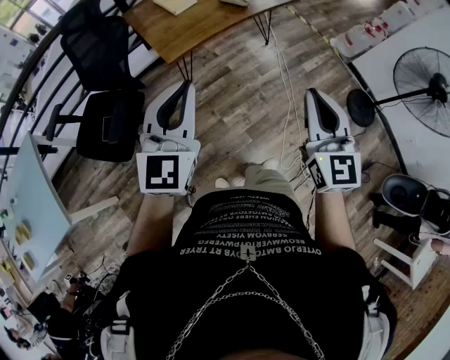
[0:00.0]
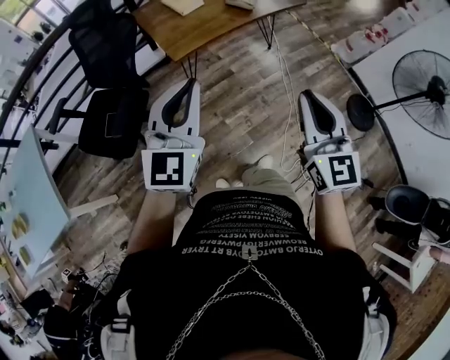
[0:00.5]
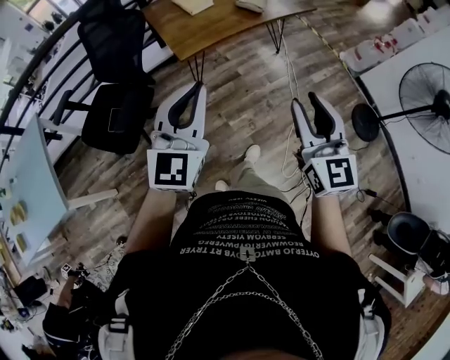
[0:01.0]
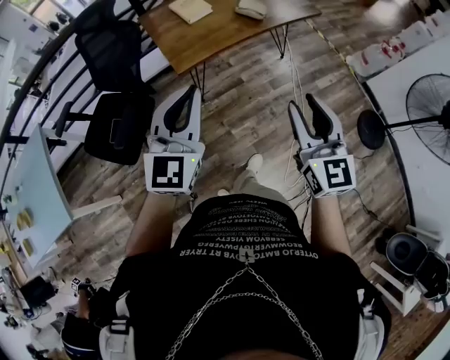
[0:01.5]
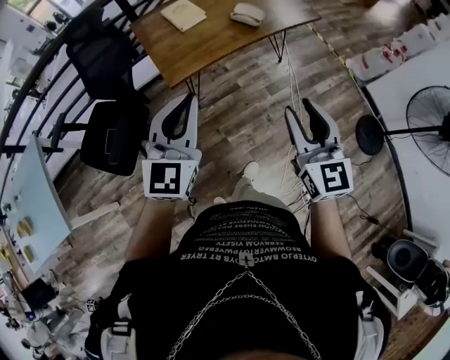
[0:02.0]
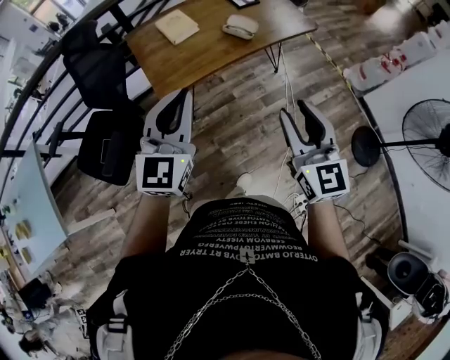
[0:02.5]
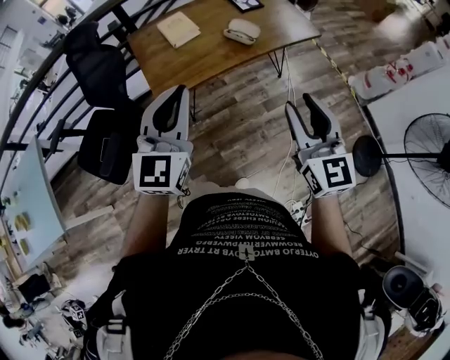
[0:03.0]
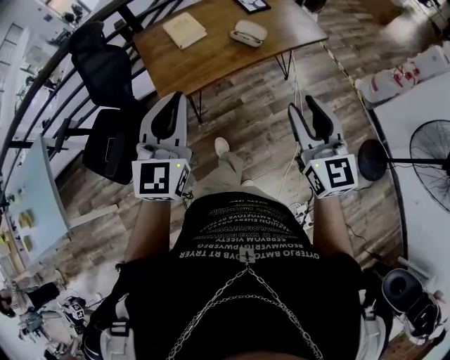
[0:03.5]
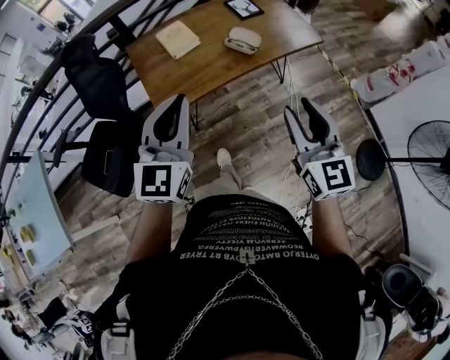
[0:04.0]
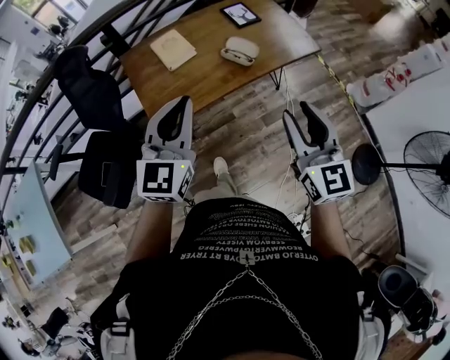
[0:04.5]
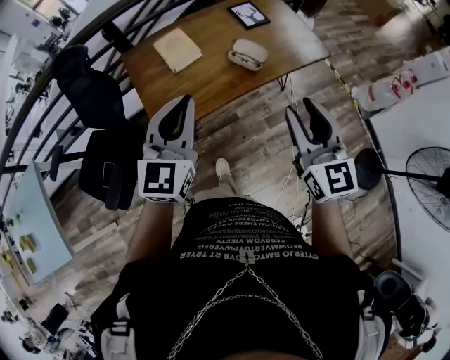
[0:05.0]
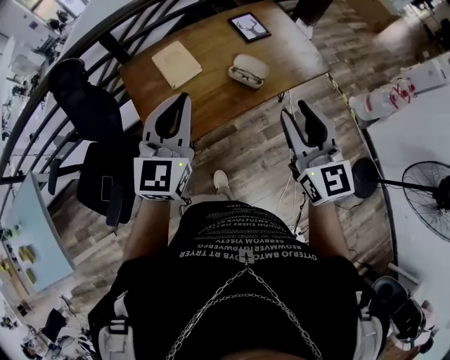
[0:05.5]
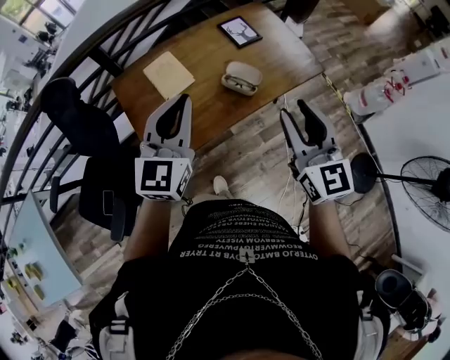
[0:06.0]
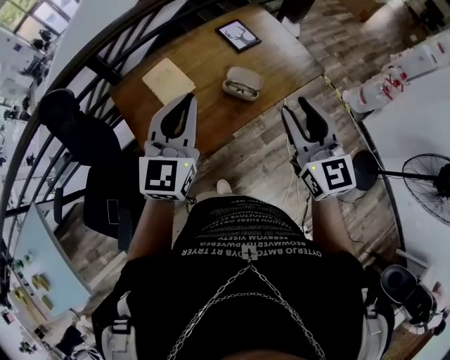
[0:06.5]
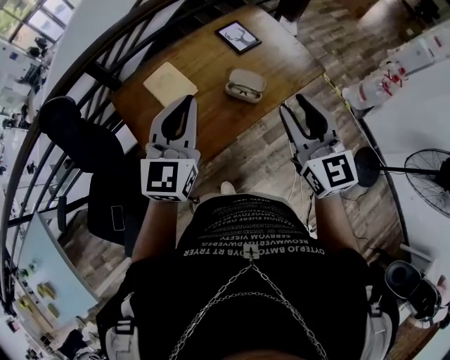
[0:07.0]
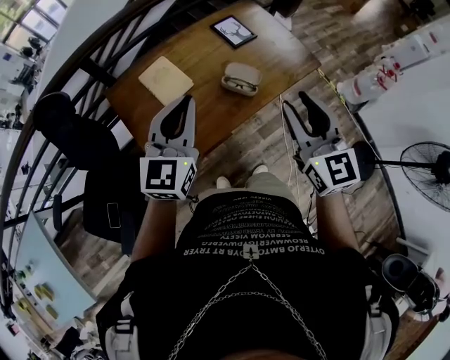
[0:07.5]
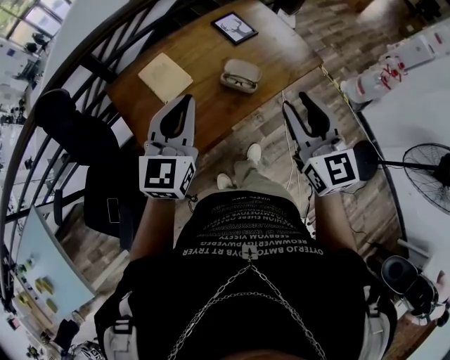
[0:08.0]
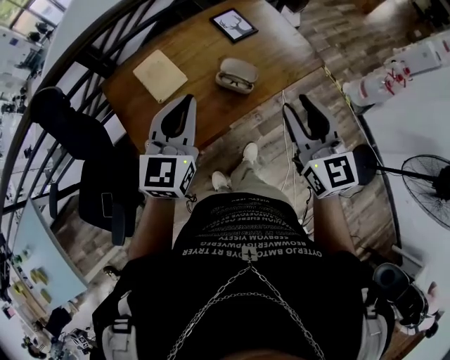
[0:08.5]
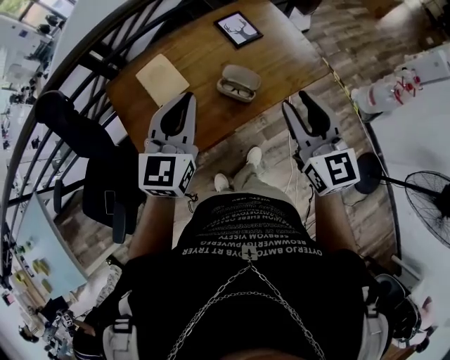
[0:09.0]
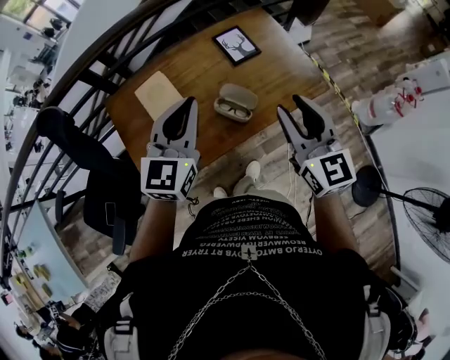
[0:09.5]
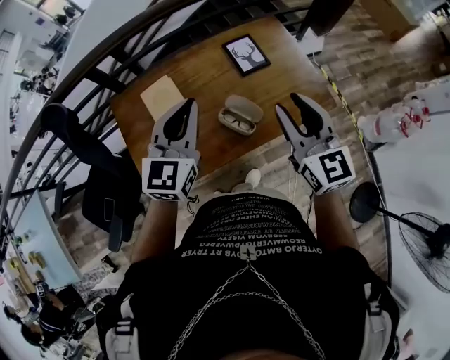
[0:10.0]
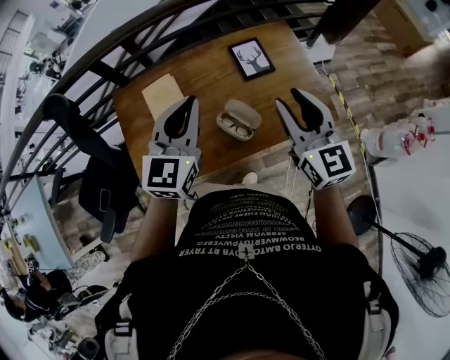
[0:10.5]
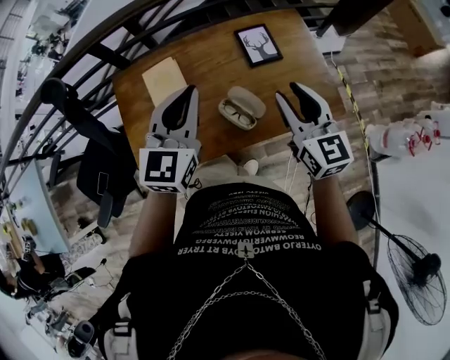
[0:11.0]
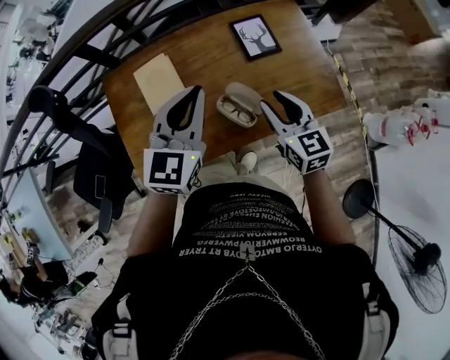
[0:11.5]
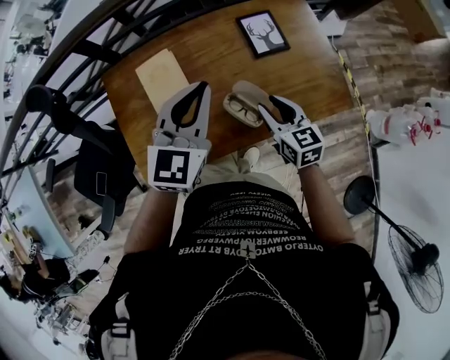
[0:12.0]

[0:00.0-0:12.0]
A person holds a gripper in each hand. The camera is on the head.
0:00.0 to 0:02.0: The two grippers go approximately 10 cm forward. The right gripper opens its fingers.
0:02.0 to 0:04.0: The two grippers go roughly 15 cm forward and to the right.
0:04.0 to 0:06.0: Both grippers travel together forward, about 25 cm.
0:06.0 to 0:08.0: The grippers move only a little.
0:08.0 to 0:10.0: The right gripper is displaced forward by approximately 20 cm. Meanwhile the left gripper travels forward and to the right by some 15 cm.
0:10.0 to 0:12.0: The right gripper is displaced downward by roughly 20 cm, and rotates approximately 30 degrees, while the left gripper travels downward and forward by approximately 10 cm.

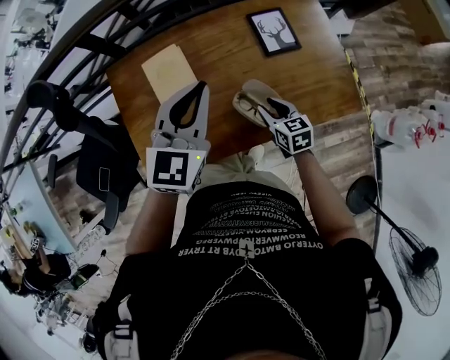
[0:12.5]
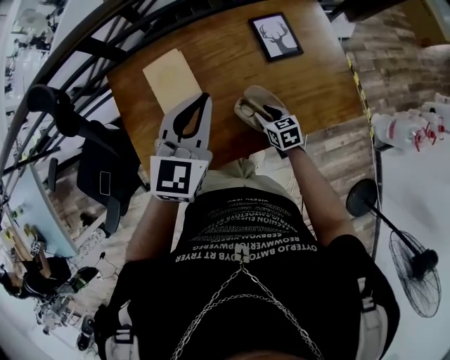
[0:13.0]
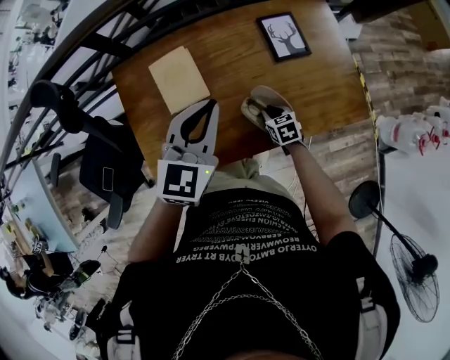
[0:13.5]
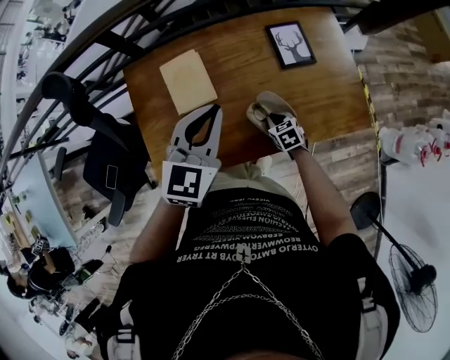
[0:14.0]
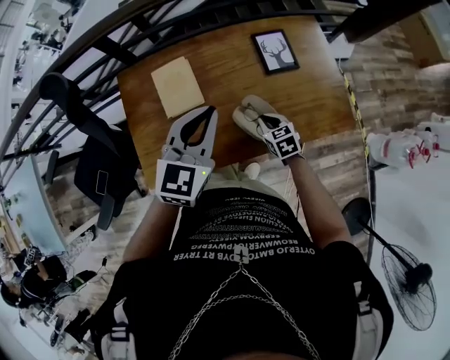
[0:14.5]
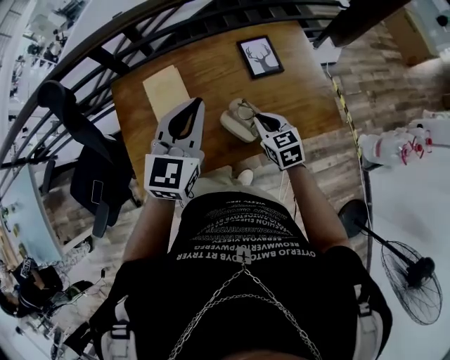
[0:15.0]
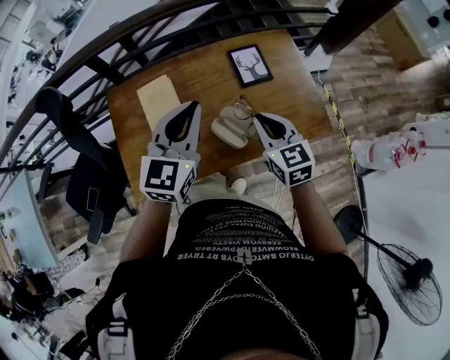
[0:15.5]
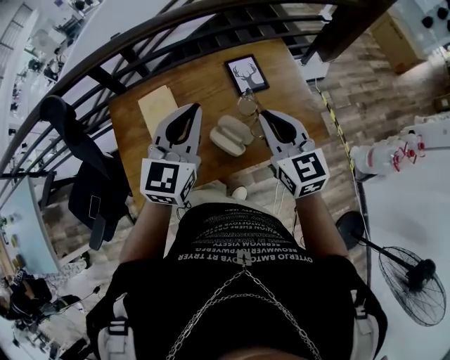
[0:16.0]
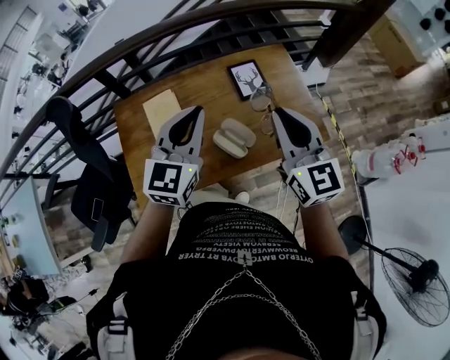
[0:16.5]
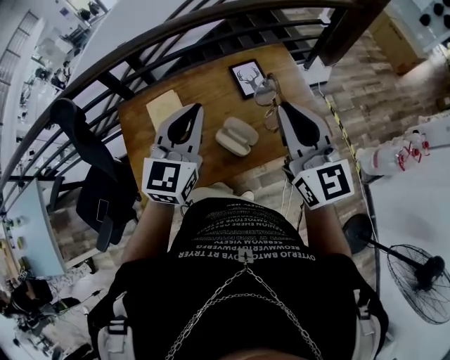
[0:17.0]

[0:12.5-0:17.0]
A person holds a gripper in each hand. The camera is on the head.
0:12.5 to 0:14.5: The right gripper reaches some 10 cm downward, then returns, and closes up.
0:14.5 to 0:17.0: The right gripper heads upward, covering roughly 40 cm, and tilts its fingers some 50 degrees upward, while the left gripper moves upward, some 10 cm.

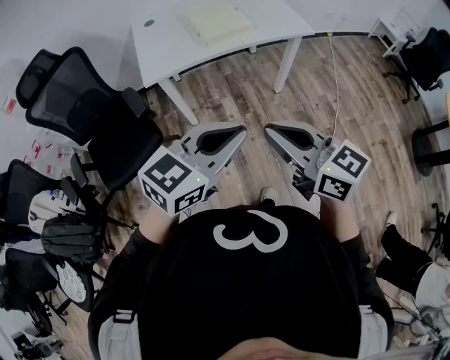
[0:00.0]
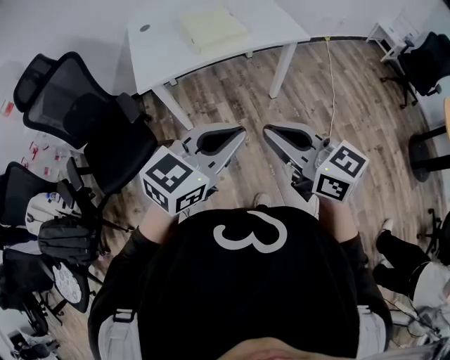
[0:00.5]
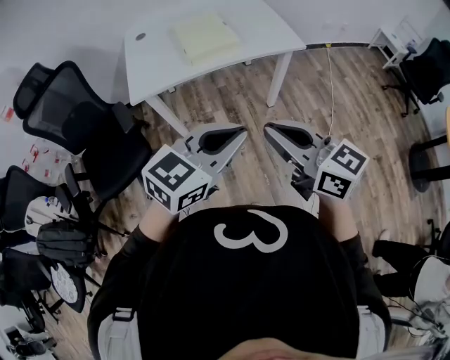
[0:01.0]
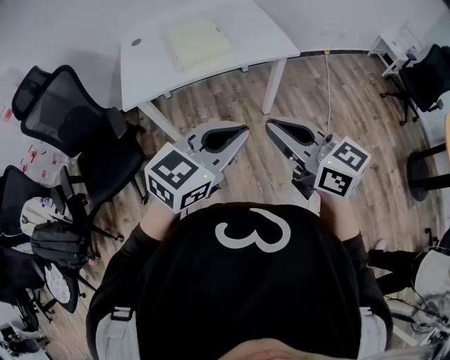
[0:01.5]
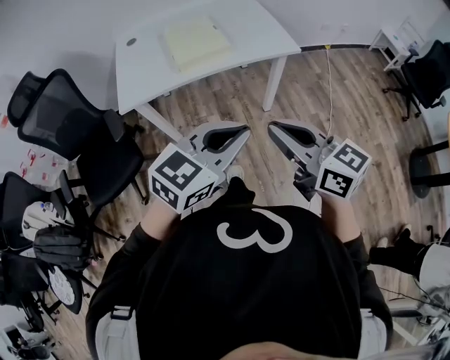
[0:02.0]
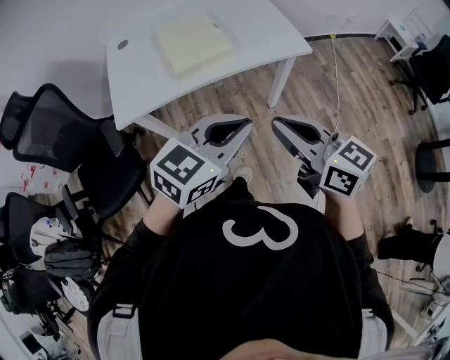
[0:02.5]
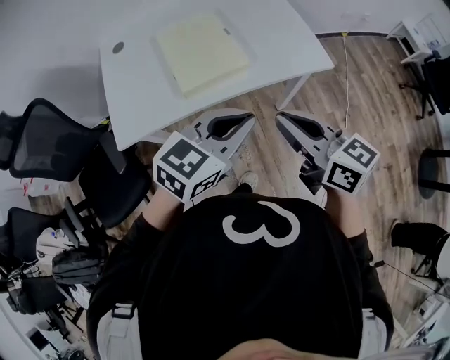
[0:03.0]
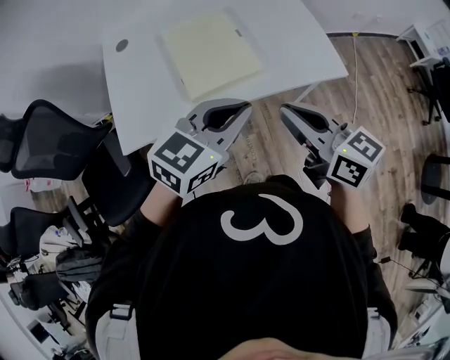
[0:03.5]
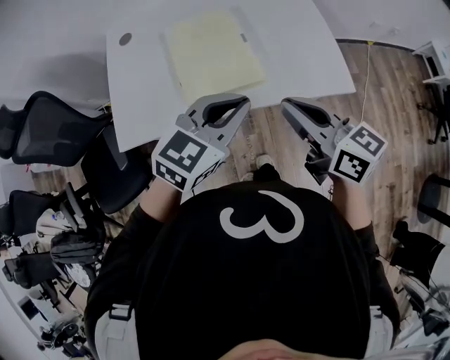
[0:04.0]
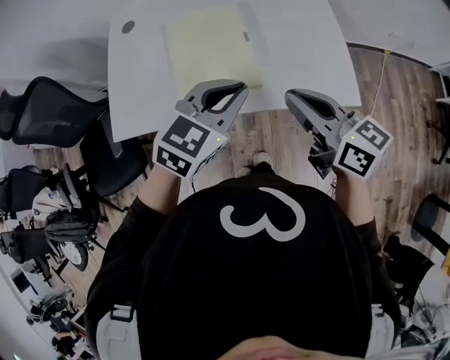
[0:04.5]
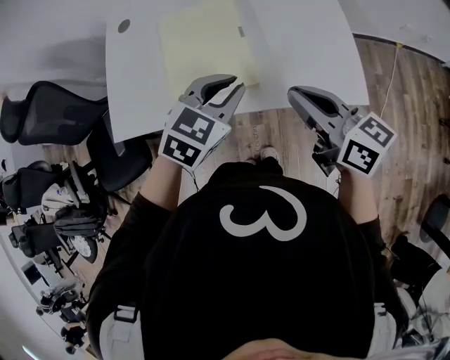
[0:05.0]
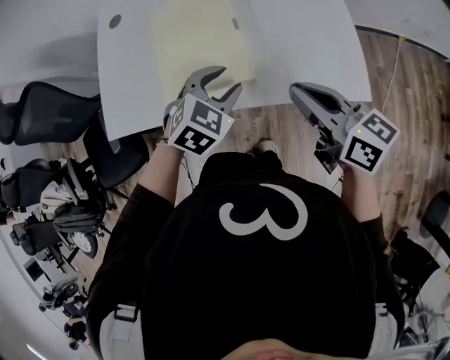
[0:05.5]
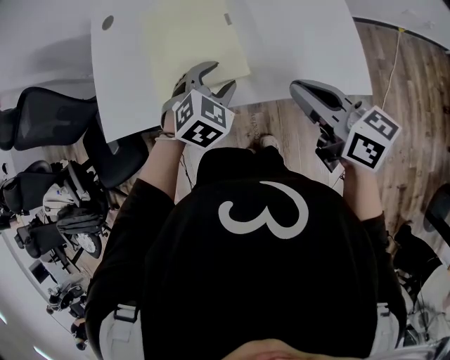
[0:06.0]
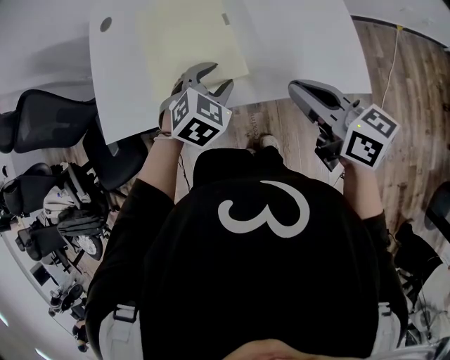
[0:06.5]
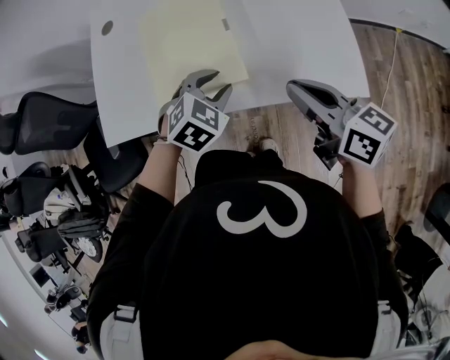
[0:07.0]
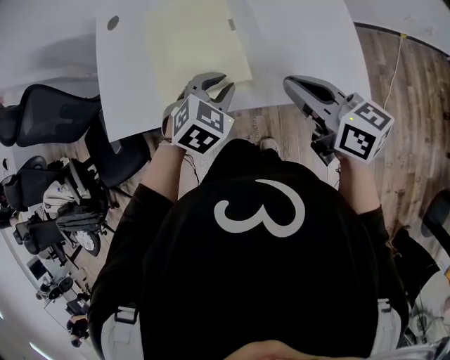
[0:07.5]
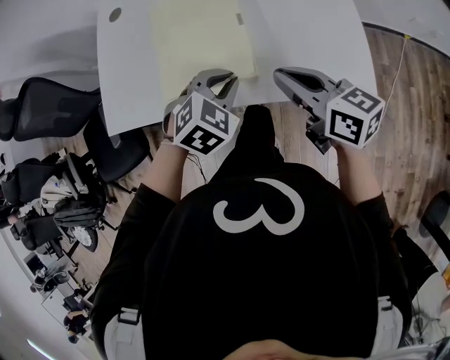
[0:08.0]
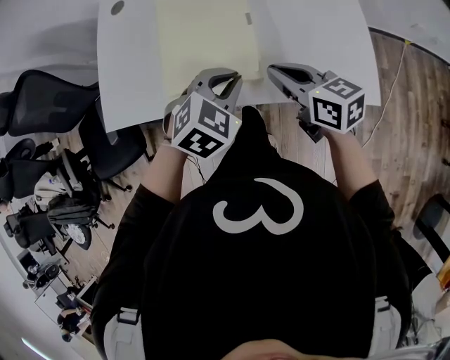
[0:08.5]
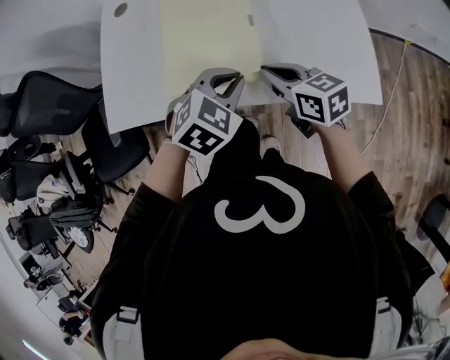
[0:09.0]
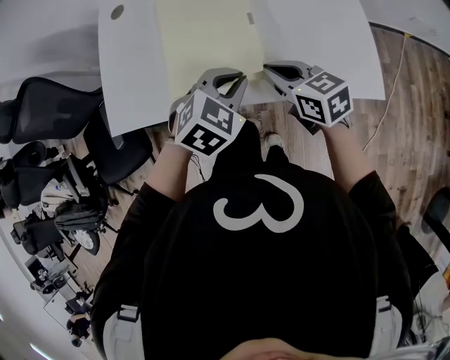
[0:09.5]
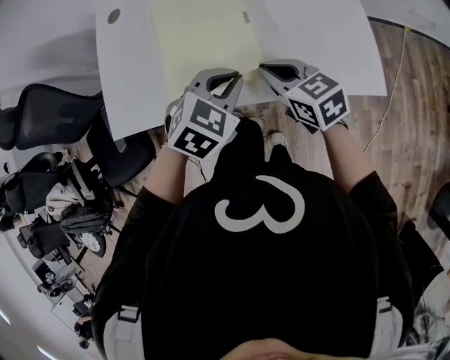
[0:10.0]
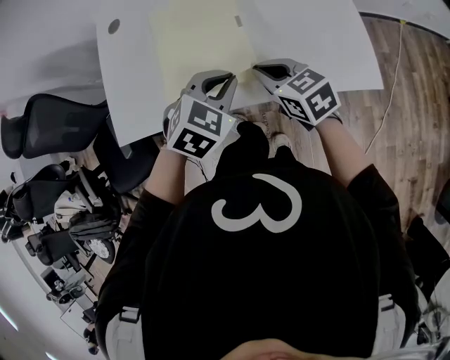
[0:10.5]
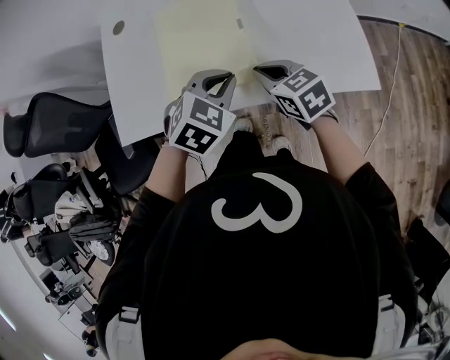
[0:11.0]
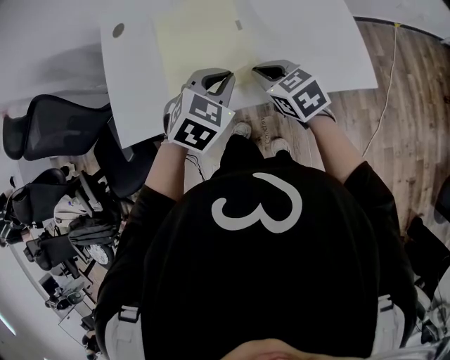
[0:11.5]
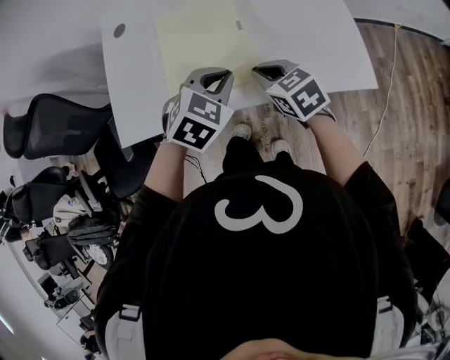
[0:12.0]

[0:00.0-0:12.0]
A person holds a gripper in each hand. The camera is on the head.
0:00.0 to 0:02.0: The grippers both shift to the right and forward by approximately 20 cm.
0:02.0 to 0:04.0: Both grippers are carried forward, approximately 40 cm.
0:04.0 to 0:06.0: The right gripper heads downward, to the right and forward, covering about 15 cm. The left gripper goes approximately 20 cm downward and forward, rotates about 40 degrees, and opens its fingers.
0:06.0 to 0:08.0: The right gripper ends up about 5 cm from where it was. The left gripper closes its fingers.
0:08.0 to 0:10.0: The right gripper shifts roughly 5 cm downward.
0:10.0 to 0:12.0: There are only small adjustments of the grippers.
